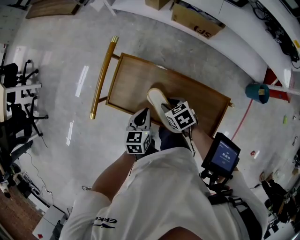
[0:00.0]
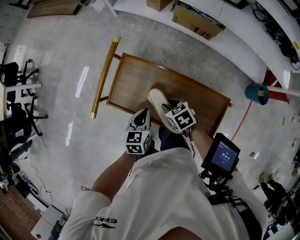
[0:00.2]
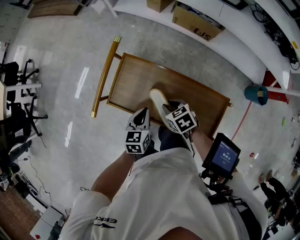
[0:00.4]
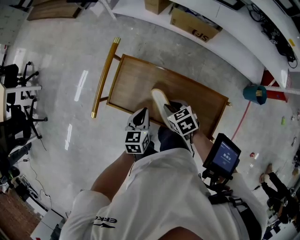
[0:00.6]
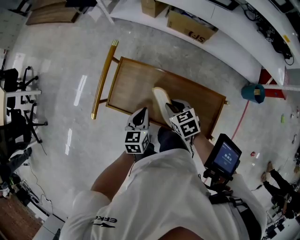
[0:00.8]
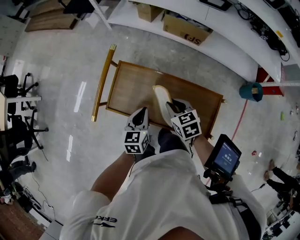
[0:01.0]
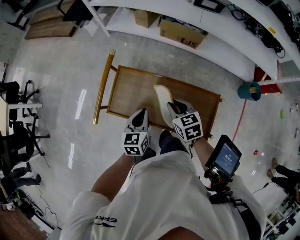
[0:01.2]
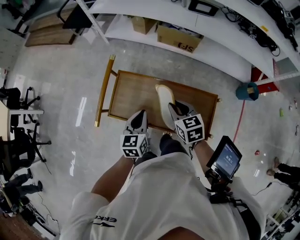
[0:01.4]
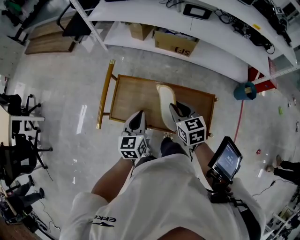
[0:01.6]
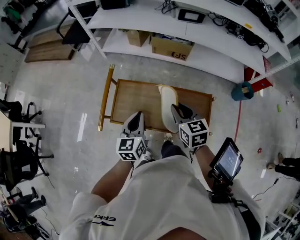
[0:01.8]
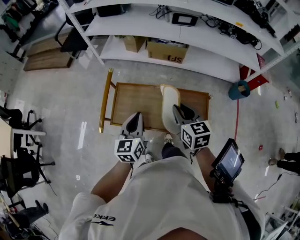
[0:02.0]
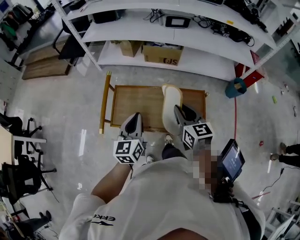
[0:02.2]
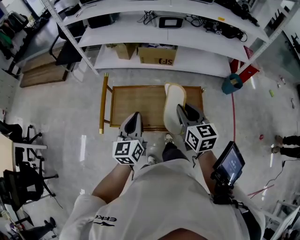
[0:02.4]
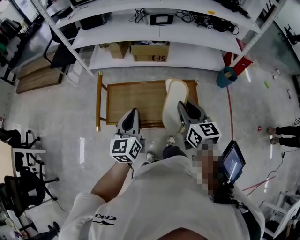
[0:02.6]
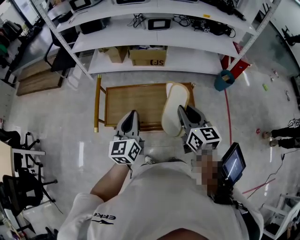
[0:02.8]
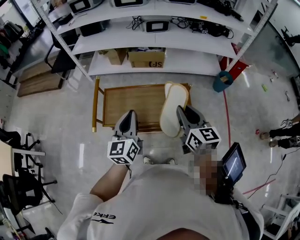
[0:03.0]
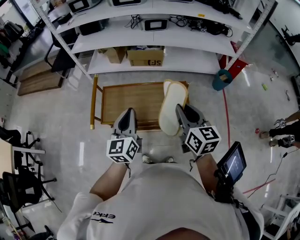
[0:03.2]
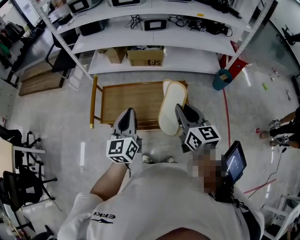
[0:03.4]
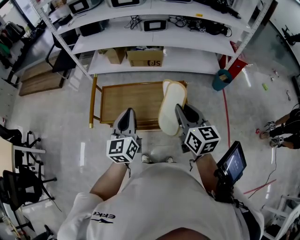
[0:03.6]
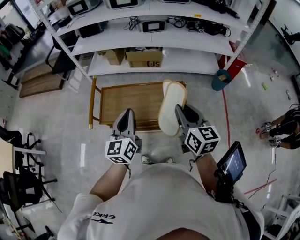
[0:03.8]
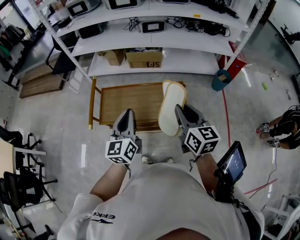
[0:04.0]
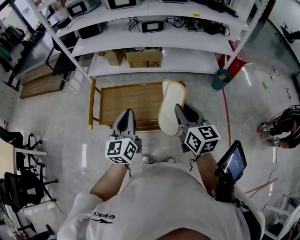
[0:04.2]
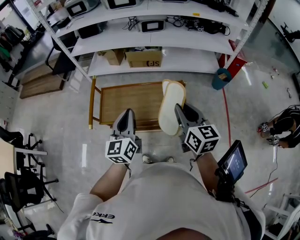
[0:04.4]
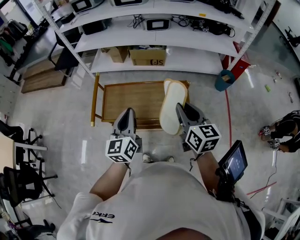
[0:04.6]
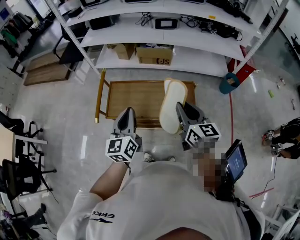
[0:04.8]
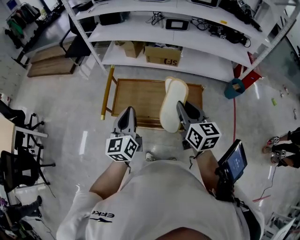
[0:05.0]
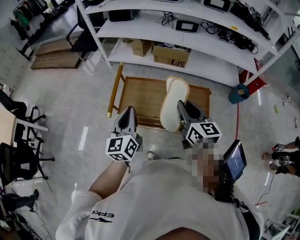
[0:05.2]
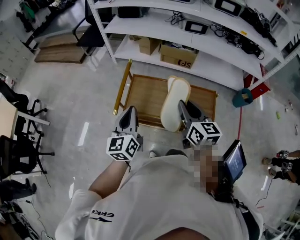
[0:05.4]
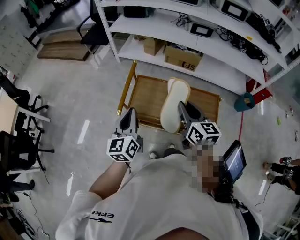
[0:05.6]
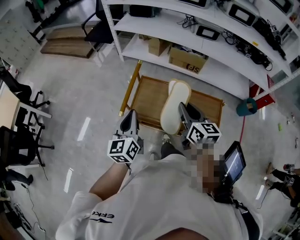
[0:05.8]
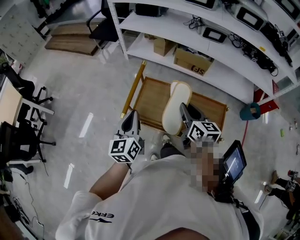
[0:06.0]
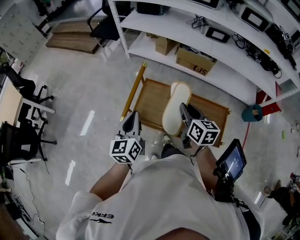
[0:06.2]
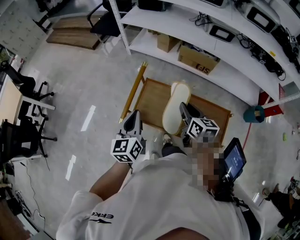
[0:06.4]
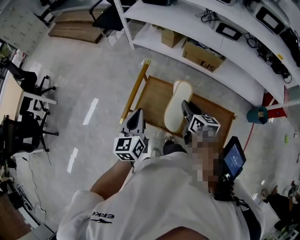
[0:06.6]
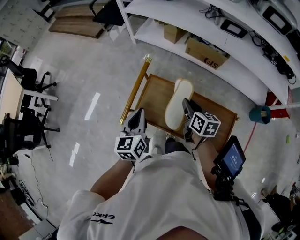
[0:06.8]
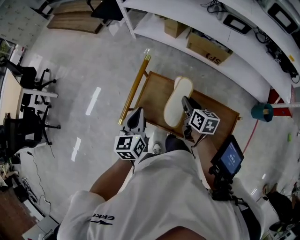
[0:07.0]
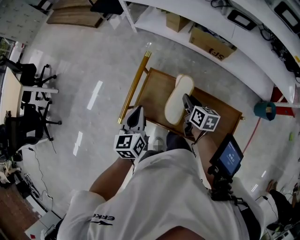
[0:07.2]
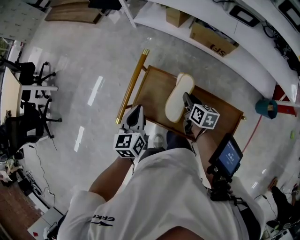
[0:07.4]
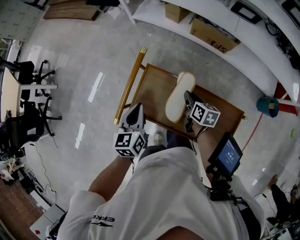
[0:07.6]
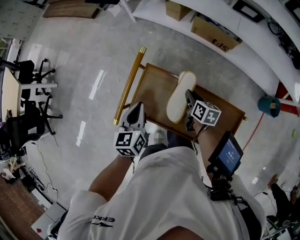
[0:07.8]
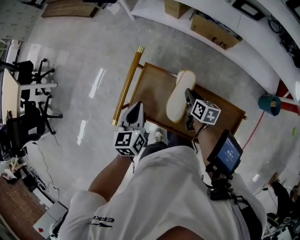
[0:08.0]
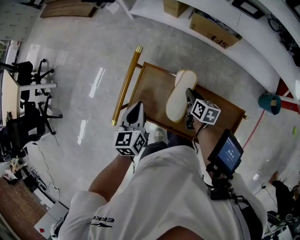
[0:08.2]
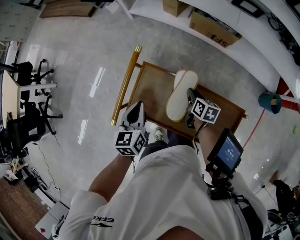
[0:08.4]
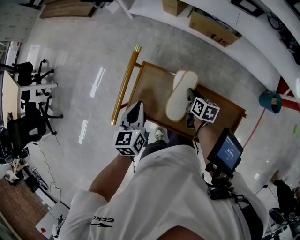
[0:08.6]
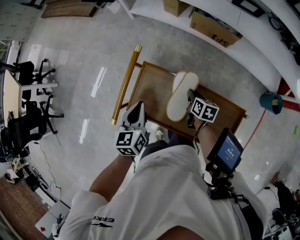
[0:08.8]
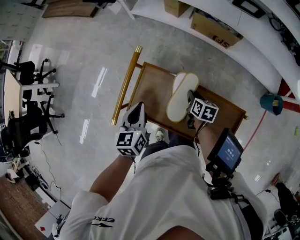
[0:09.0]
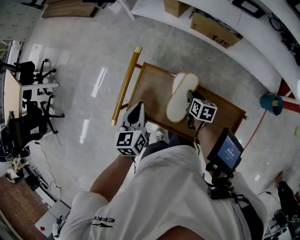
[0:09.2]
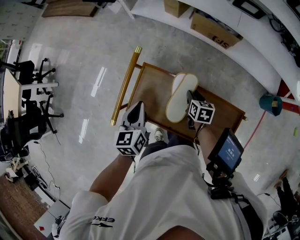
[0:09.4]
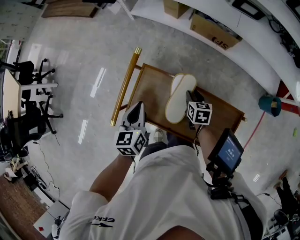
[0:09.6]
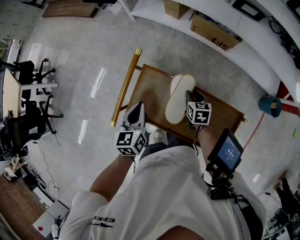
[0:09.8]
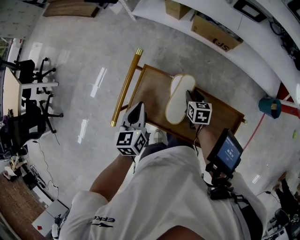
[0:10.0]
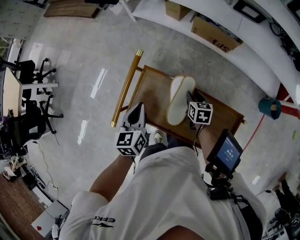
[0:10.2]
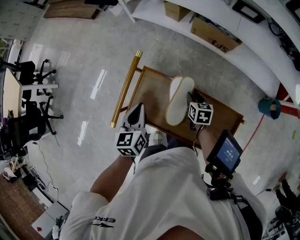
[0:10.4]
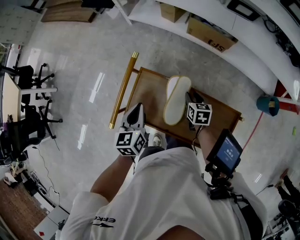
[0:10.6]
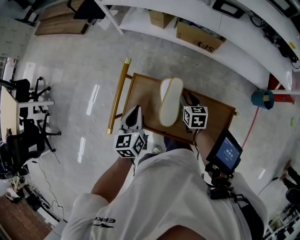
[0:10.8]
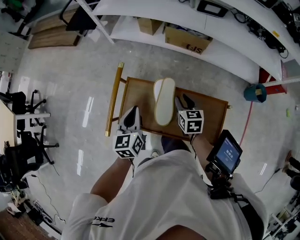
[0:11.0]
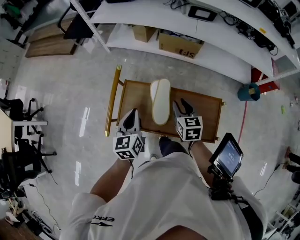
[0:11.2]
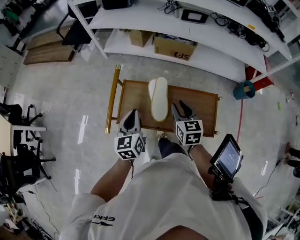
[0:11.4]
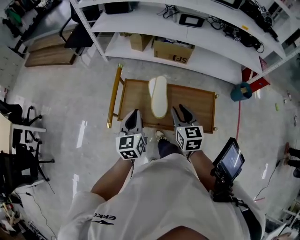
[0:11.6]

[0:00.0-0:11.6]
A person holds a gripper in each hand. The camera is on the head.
0:00.0 to 0:01.4: The left gripper shifts about 10 cm upward, while the right gripper goes some 15 cm upward, and swivels about 30 degrees.
0:01.4 to 0:02.8: The right gripper shifts some 25 cm backward, upward and to the right, and changes its angle by approximately 40 degrees. Meanwhile the left gripper shifts about 20 cm upward and backward, and turns by approximately 20 degrees.
0:02.8 to 0:04.4: The two grippers go about 5 cm to the right.
0:04.4 to 0:05.8: The right gripper moves to the left and forward, about 25 cm. The left gripper goes approximately 20 cm to the left.
0:05.8 to 0:07.2: The left gripper heads forward and downward, covering roughly 15 cm, while the right gripper goes about 30 cm downward and forward, and swivels some 30 degrees.
0:07.2 to 0:08.8: The left gripper moves roughly 5 cm; the right gripper travels downward and to the right by some 15 cm.
0:10.2 to 0:11.6: The right gripper travels upward and backward by about 30 cm, and rotates roughly 30 degrees. The left gripper shifts some 15 cm backward and upward, and rotates some 20 degrees.

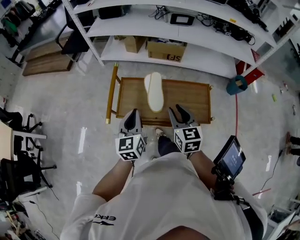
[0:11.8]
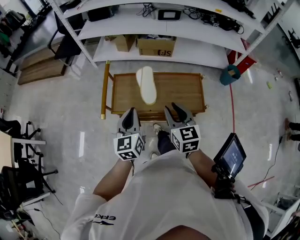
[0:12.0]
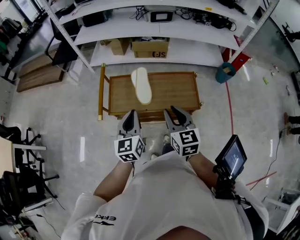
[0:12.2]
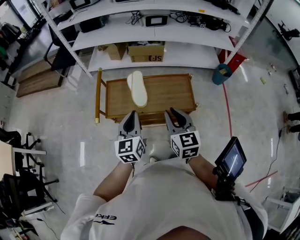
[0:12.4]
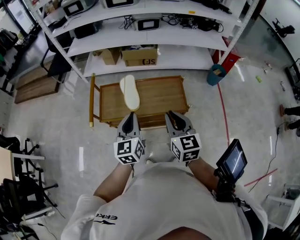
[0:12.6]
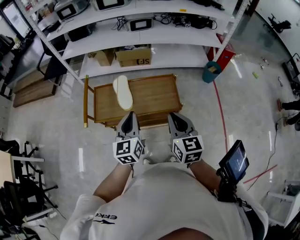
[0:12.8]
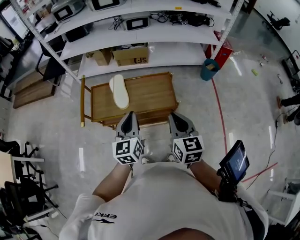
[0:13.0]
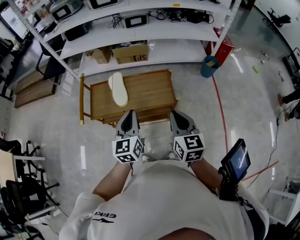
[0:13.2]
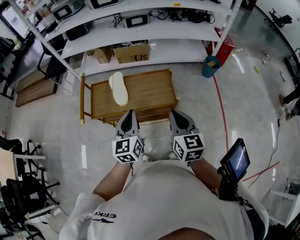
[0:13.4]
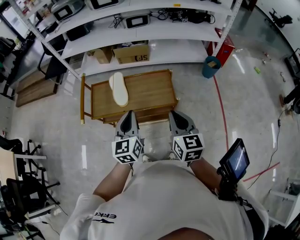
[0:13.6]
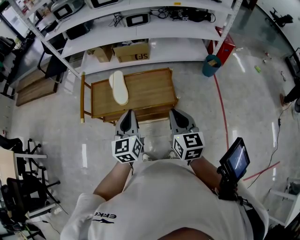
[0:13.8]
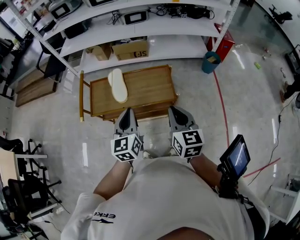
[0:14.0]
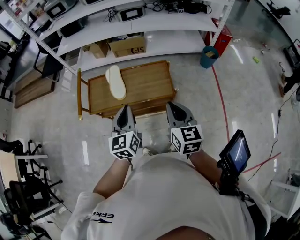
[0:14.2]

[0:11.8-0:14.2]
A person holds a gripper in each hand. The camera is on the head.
0:11.8 to 0:13.0: Both grippers move to the right and backward, roughly 25 cm. The right gripper closes its fingers.
0:13.0 to 0:14.2: The grippers move only a little.

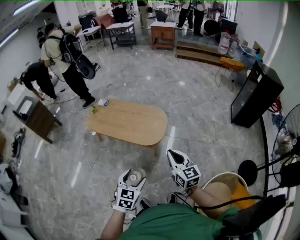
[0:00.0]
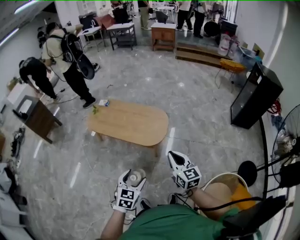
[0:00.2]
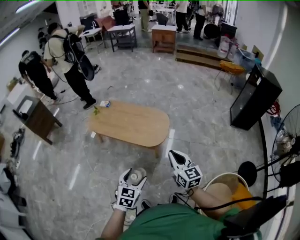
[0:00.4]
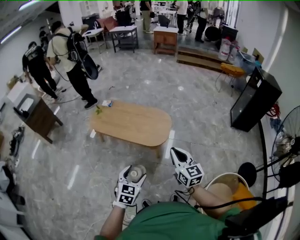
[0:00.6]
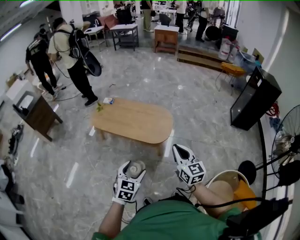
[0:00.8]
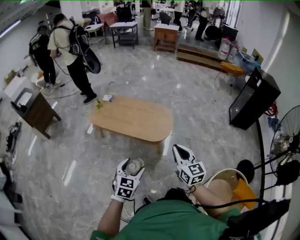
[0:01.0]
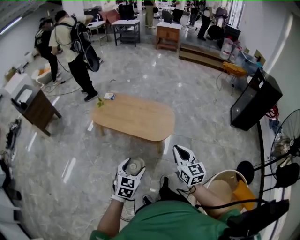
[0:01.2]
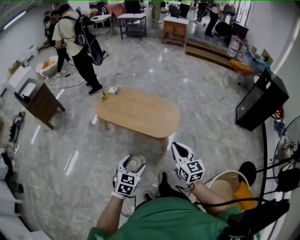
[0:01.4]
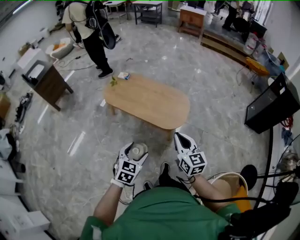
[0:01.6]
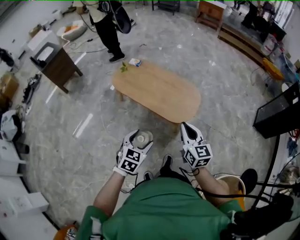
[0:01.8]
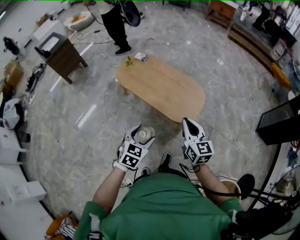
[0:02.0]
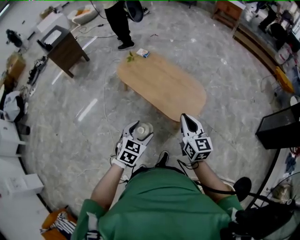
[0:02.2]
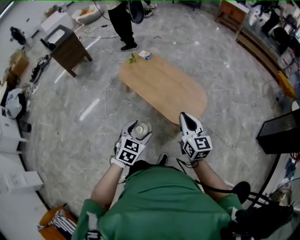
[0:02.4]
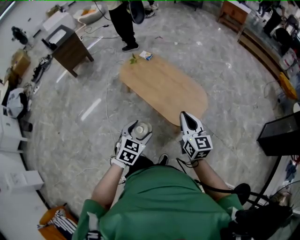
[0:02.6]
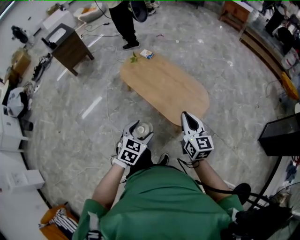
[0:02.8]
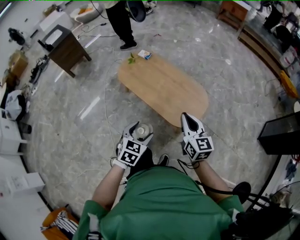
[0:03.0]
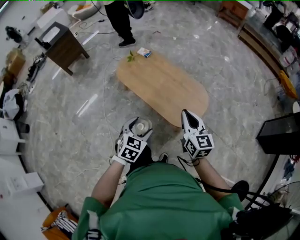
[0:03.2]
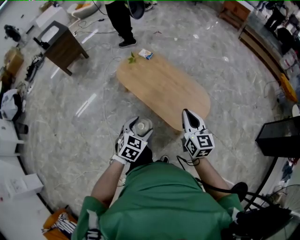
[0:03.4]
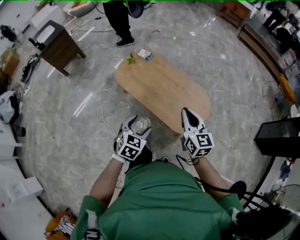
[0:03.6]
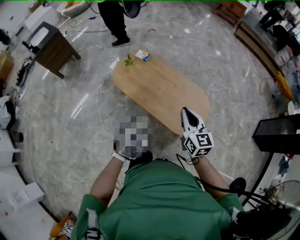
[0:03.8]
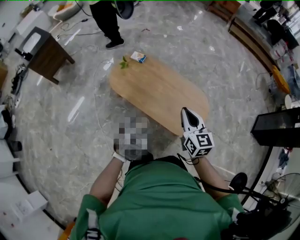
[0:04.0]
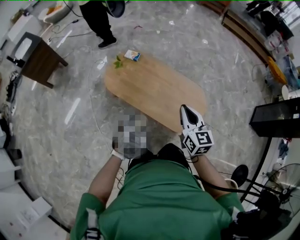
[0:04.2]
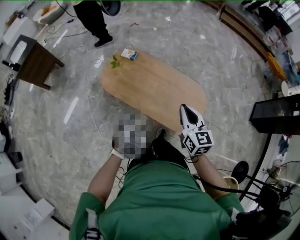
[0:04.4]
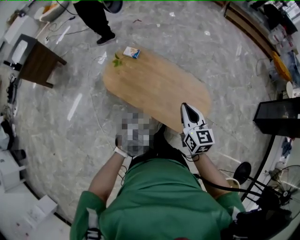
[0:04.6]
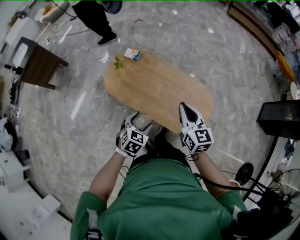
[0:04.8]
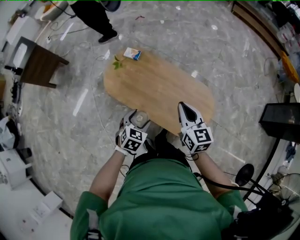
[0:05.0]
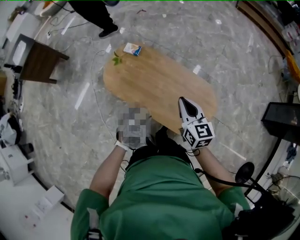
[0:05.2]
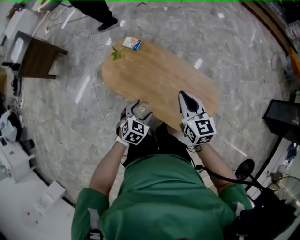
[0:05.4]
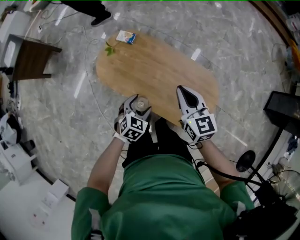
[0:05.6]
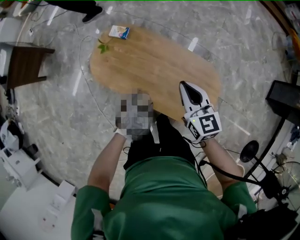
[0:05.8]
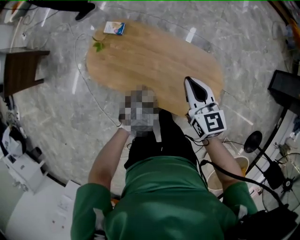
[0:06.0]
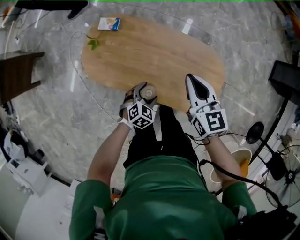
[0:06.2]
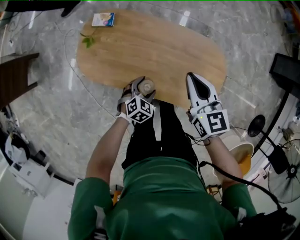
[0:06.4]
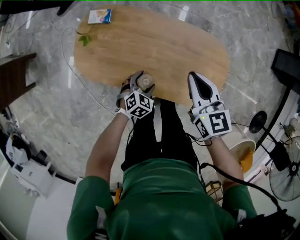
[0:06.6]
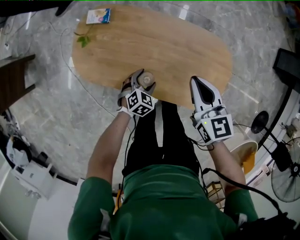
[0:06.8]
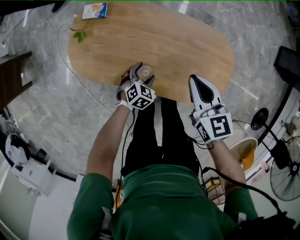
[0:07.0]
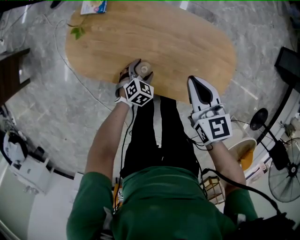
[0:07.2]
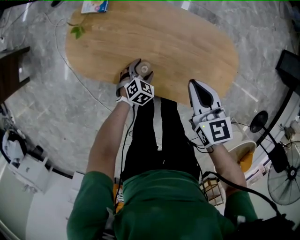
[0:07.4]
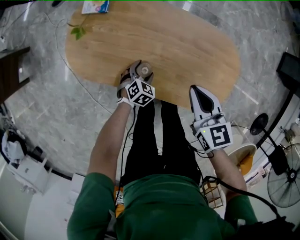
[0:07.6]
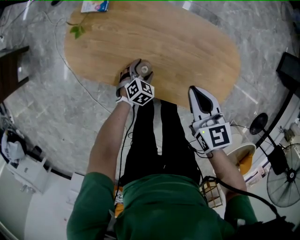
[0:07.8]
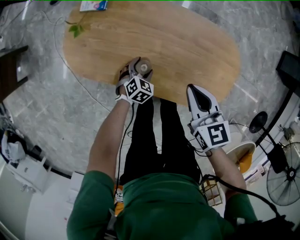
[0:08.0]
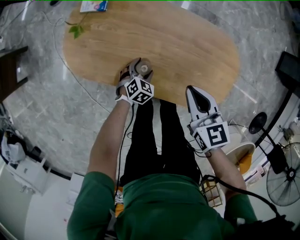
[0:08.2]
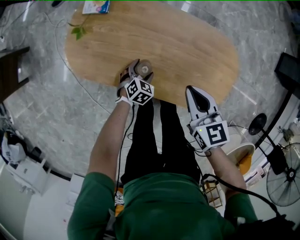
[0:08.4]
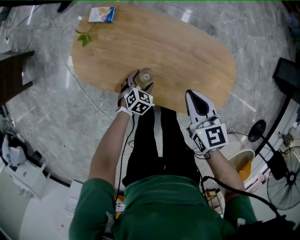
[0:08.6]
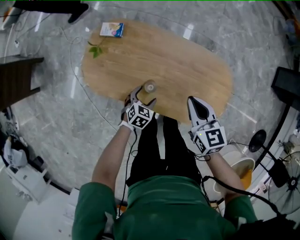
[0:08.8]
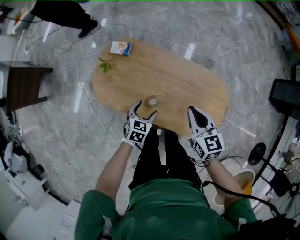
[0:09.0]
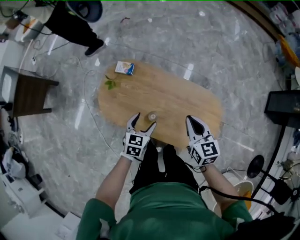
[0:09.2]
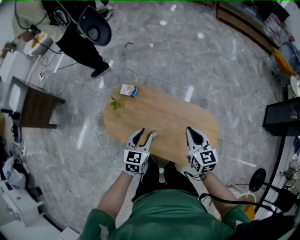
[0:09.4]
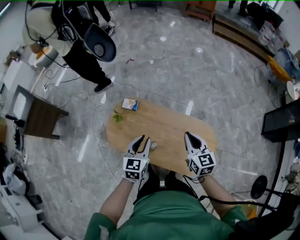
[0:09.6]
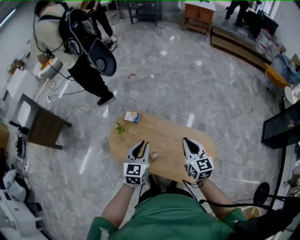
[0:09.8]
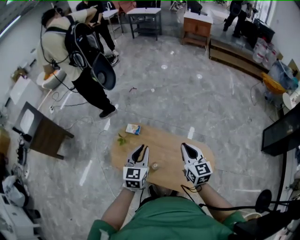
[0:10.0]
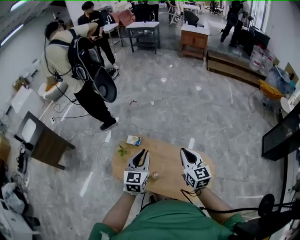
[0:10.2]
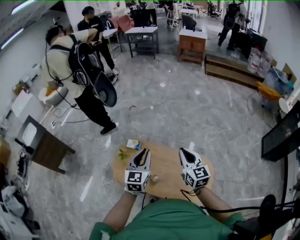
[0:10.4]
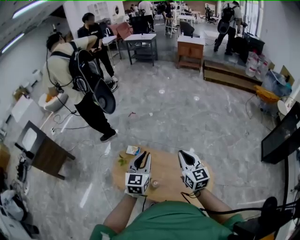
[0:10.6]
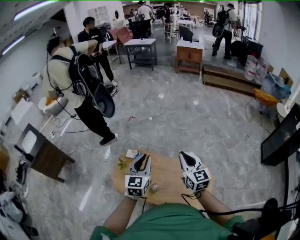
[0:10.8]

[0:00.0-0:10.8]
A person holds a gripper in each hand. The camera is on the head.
0:00.0 to 0:01.6: Both grippers move to the left, some 15 cm.
0:01.6 to 0:03.0: The grippers both shift forward by roughly 20 cm.
0:03.0 to 0:04.6: The two grippers go some 30 cm forward and to the left.
0:04.6 to 0:06.2: The right gripper moves forward and downward, about 25 cm, while the left gripper shifts some 30 cm downward and forward, and turns by approximately 20 degrees.
0:06.2 to 0:07.8: Both grippers travel together downward, about 20 cm.
0:07.8 to 0:09.2: The right gripper is displaced upward by some 20 cm. Meanwhile the left gripper is displaced upward by roughly 35 cm, and rotates approximately 30 degrees.
0:09.2 to 0:10.8: Both grippers move upward, about 30 cm. The right gripper rotates approximately 20 degrees. Meanwhile the left gripper tips its fingers upward by roughly 30 degrees, and closes its fingers.
